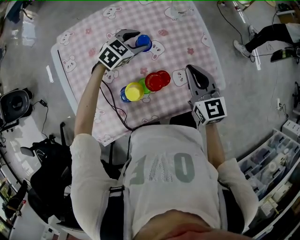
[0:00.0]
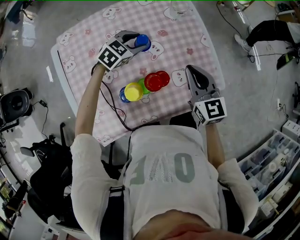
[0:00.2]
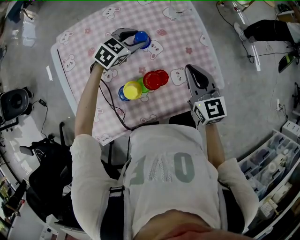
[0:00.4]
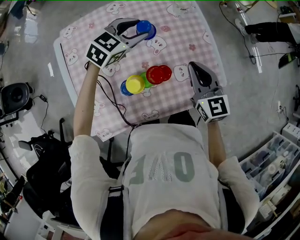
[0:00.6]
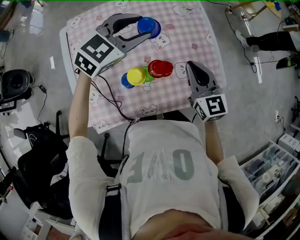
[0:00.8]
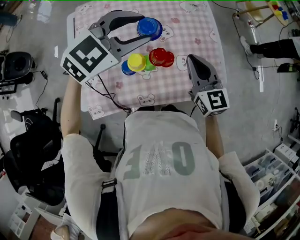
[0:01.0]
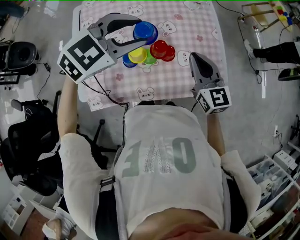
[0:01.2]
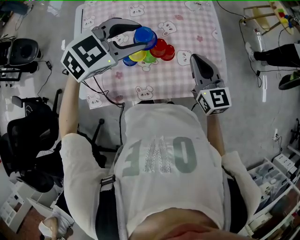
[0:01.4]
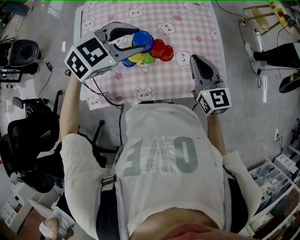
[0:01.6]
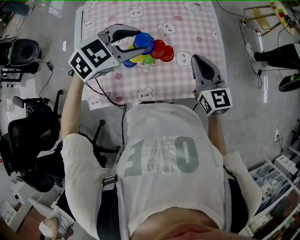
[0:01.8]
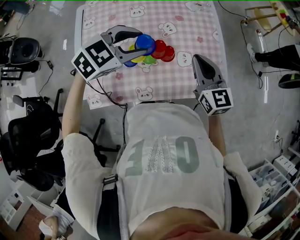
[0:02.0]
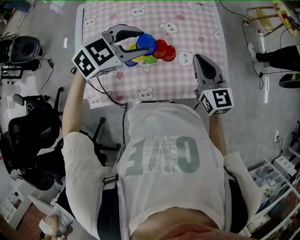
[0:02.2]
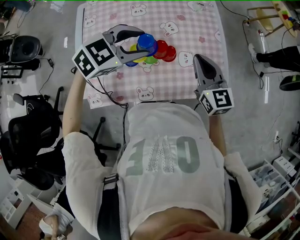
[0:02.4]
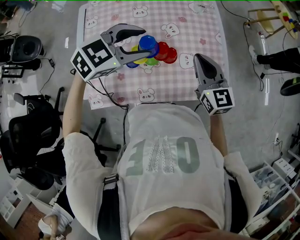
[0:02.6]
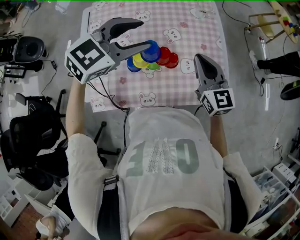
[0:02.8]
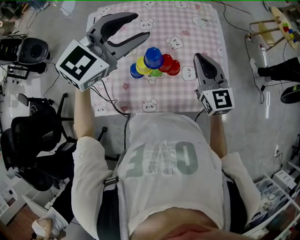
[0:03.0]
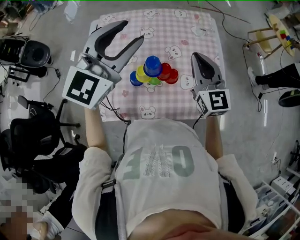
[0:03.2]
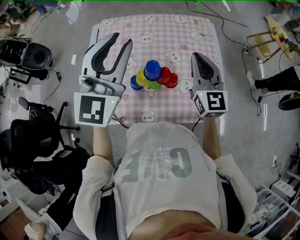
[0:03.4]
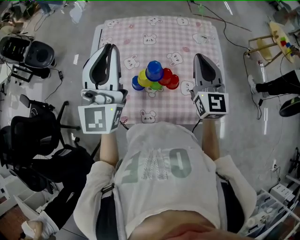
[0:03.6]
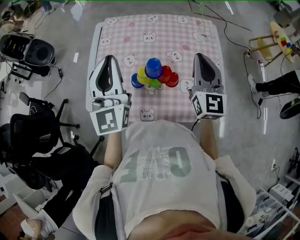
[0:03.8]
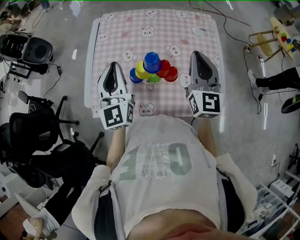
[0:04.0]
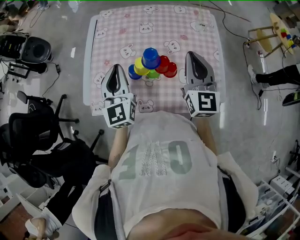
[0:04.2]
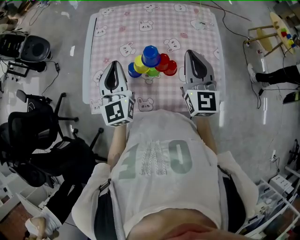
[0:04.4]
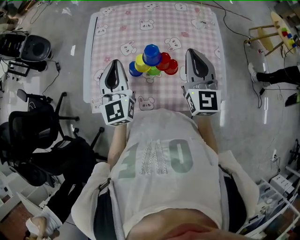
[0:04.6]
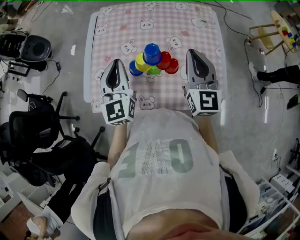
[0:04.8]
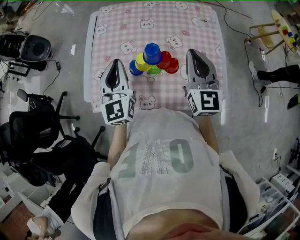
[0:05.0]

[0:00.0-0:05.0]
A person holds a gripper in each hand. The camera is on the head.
0:00.0 to 0:01.6: The left gripper shifts about 25 cm backward and upward. The right gripper moves backward, some 10 cm.
0:01.6 to 0:03.4: The right gripper heads upward, forward and to the left, covering about 10 cm, while the left gripper shifts roughly 15 cm upward, and angles its fingers upward, by some 50 degrees.
0:03.4 to 0:05.0: The left gripper heads downward, covering some 15 cm, turns by some 30 degrees, and closes its fingers.

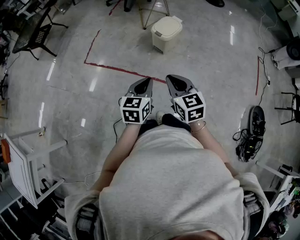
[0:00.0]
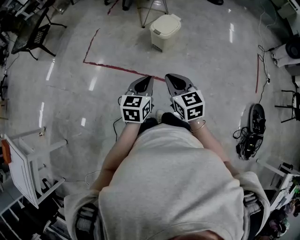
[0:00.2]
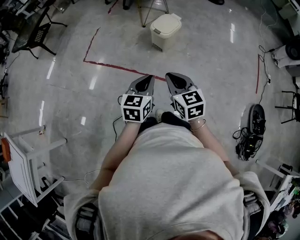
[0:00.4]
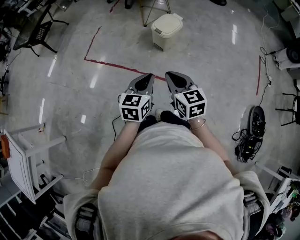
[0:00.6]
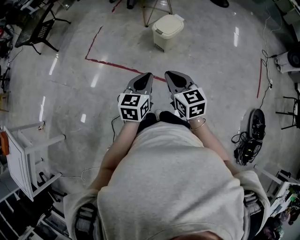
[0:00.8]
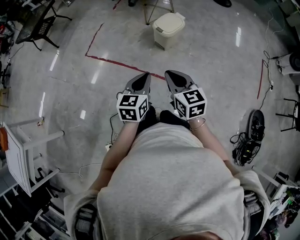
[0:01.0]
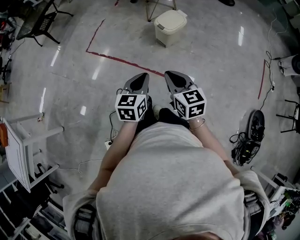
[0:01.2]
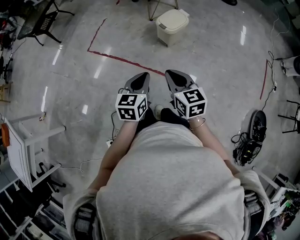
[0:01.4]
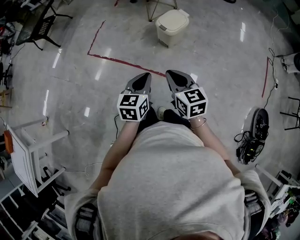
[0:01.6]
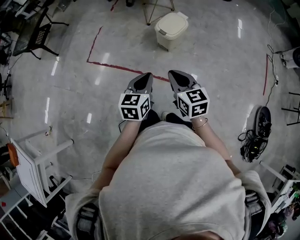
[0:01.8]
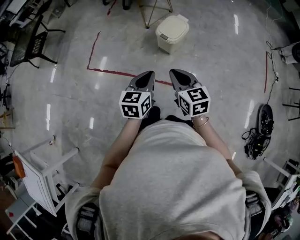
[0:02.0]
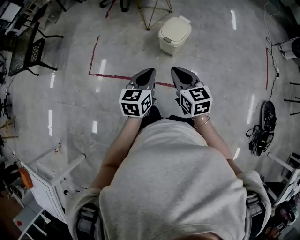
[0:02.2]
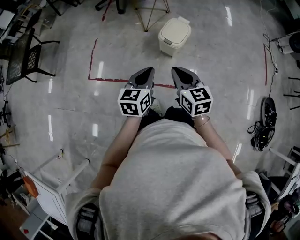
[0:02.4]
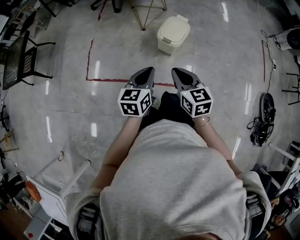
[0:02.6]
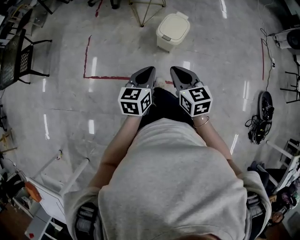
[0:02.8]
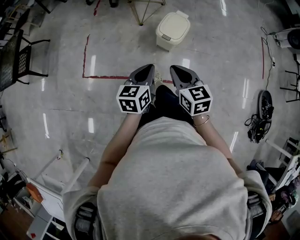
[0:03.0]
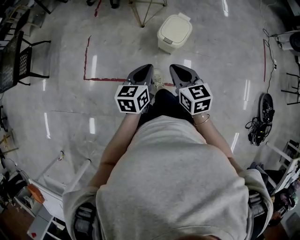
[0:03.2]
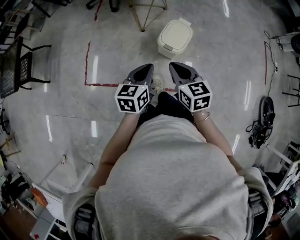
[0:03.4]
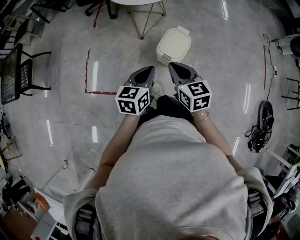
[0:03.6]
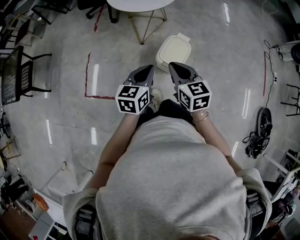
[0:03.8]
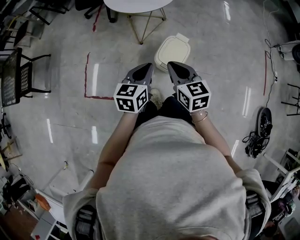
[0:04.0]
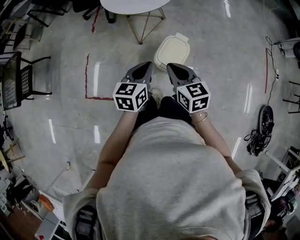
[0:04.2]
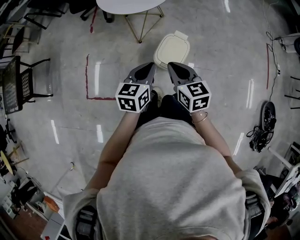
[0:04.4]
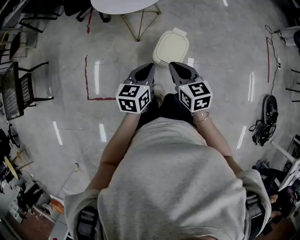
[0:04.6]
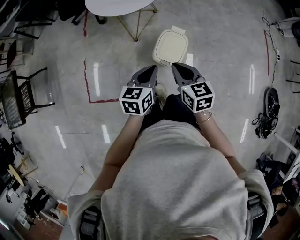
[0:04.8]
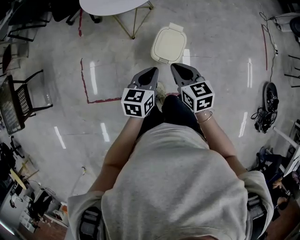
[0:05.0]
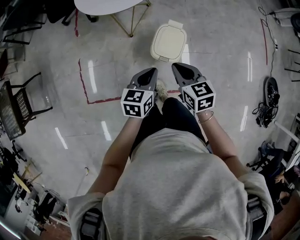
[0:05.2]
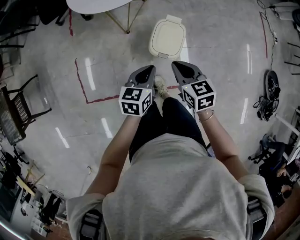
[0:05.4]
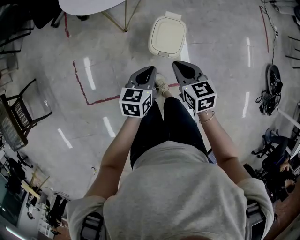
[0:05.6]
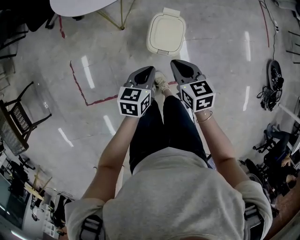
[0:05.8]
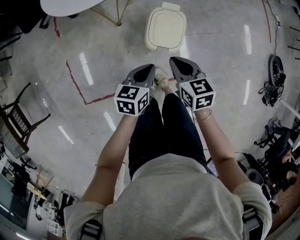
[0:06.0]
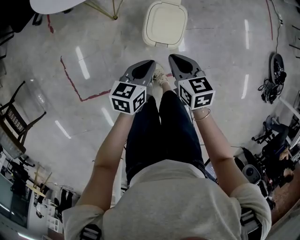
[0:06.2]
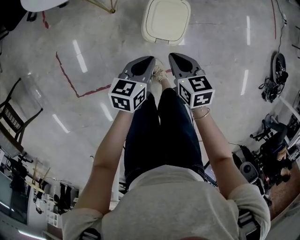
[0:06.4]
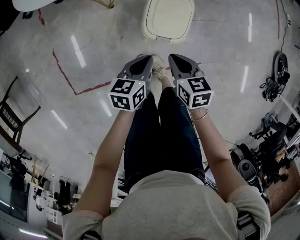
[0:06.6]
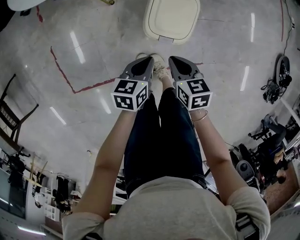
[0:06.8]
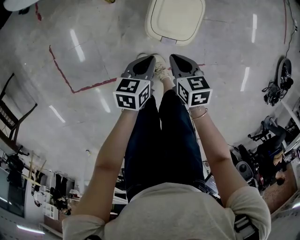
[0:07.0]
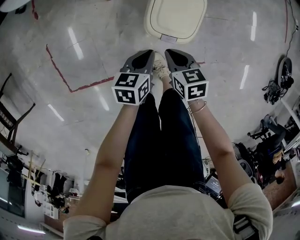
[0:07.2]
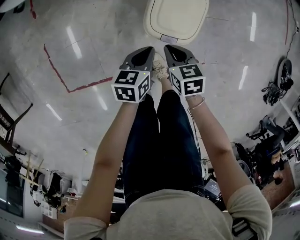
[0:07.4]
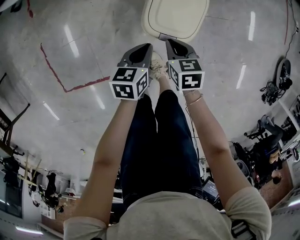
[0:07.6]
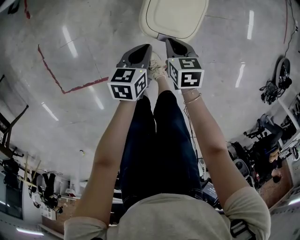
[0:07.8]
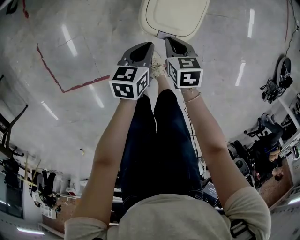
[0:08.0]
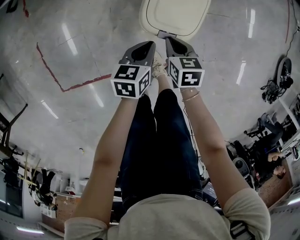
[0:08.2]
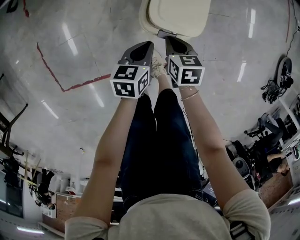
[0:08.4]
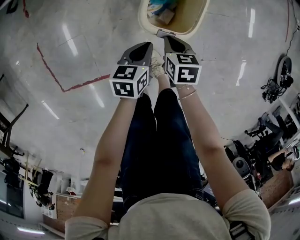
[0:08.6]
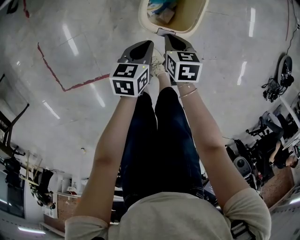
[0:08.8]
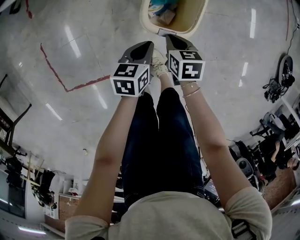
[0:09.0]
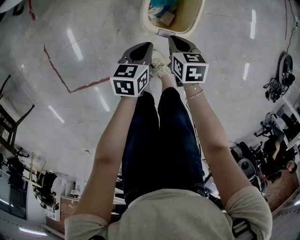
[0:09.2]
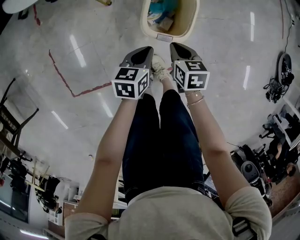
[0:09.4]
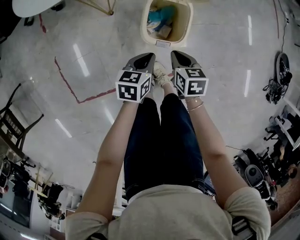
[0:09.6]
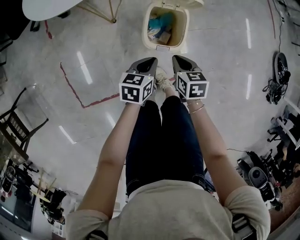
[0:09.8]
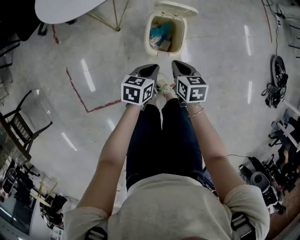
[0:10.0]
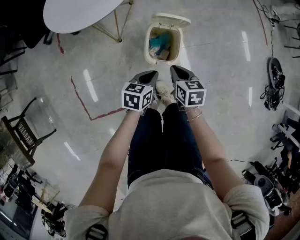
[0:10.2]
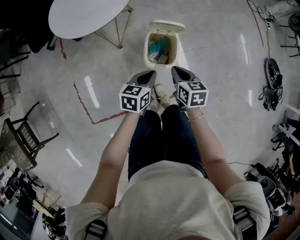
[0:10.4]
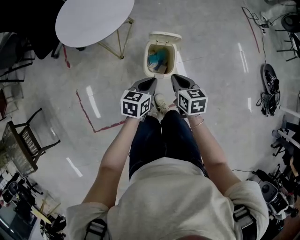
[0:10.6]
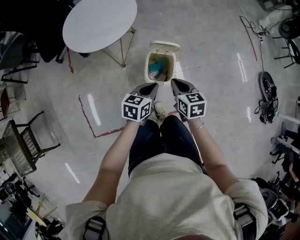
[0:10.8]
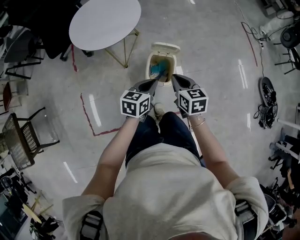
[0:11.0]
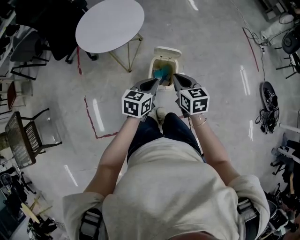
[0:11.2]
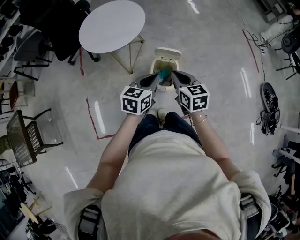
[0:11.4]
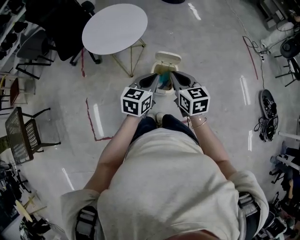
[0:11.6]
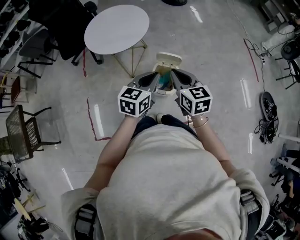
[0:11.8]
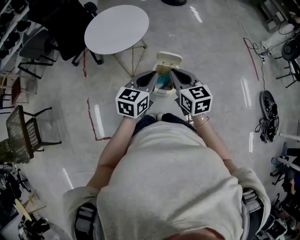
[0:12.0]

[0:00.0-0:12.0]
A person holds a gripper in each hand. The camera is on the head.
0:00.0 to 0:01.6: The right gripper changes place by about 5 cm.
0:01.6 to 0:03.0: The two grippers go some 25 cm forward and to the left.
0:03.0 to 0:04.4: The two grippers go approximately 25 cm forward.
0:04.4 to 0:06.0: Both grippers travel together downward, roughly 15 cm. The right gripper rotates approximately 20 degrees; the left gripper rotates some 30 degrees.
0:06.0 to 0:07.6: The two grippers go approximately 25 cm downward.
0:07.6 to 0:09.0: The grippers make only small movements.
0:09.0 to 0:10.4: Both grippers travel together upward, about 25 cm.
0:10.4 to 0:12.0: Both grippers move upward, some 25 cm. The right gripper turns by some 30 degrees, while the left gripper turns by roughly 30 degrees.

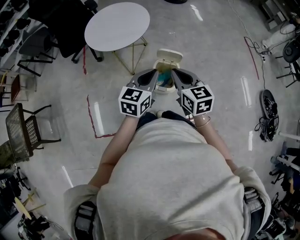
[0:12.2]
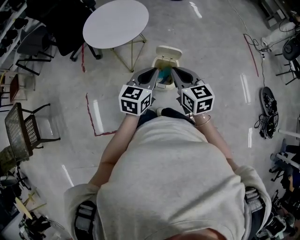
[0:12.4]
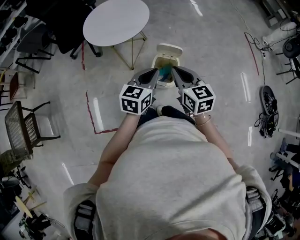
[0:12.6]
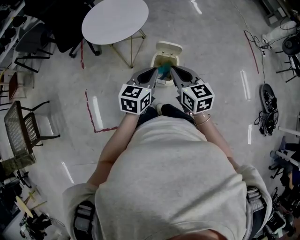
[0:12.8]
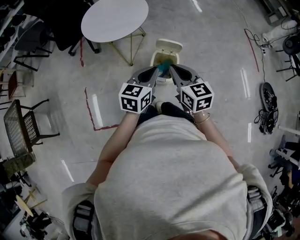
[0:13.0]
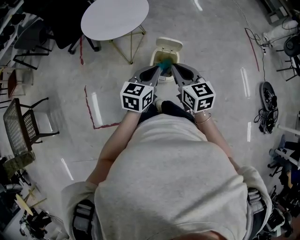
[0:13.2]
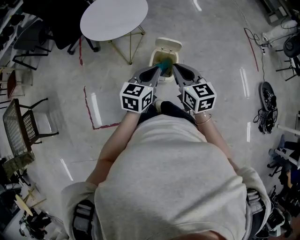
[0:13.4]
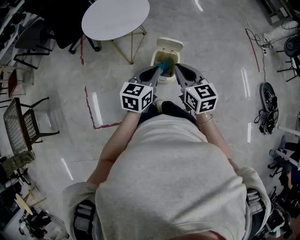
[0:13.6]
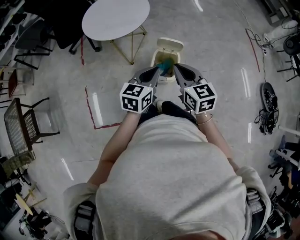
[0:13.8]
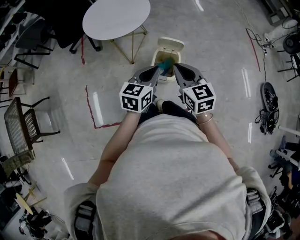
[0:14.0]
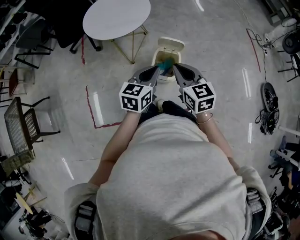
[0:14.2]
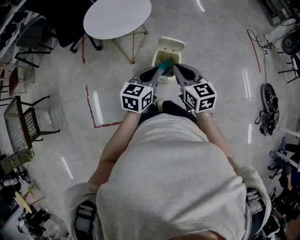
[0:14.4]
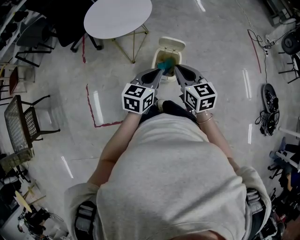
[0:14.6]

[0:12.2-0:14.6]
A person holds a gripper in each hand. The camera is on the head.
0:12.2 to 0:14.6: There are only small adjustments of the grippers.

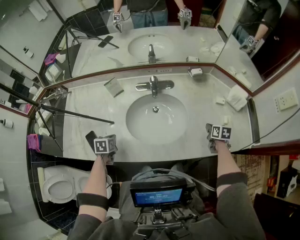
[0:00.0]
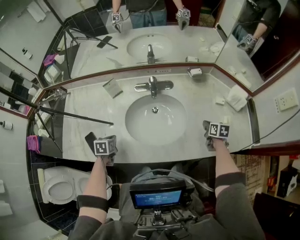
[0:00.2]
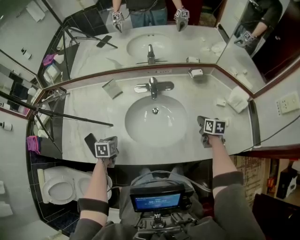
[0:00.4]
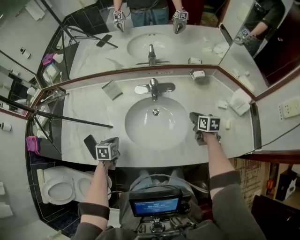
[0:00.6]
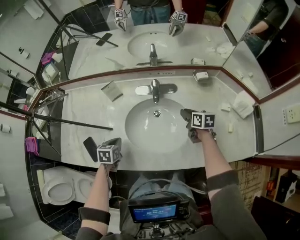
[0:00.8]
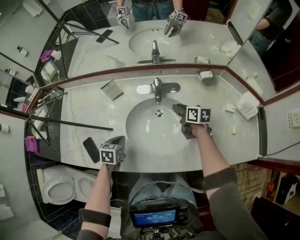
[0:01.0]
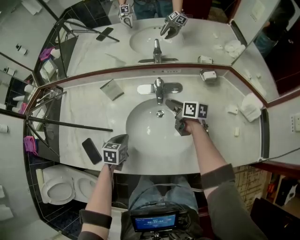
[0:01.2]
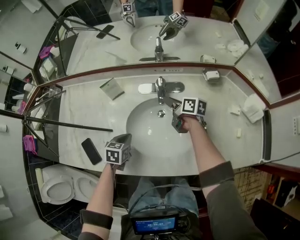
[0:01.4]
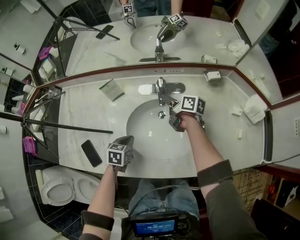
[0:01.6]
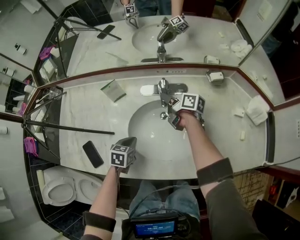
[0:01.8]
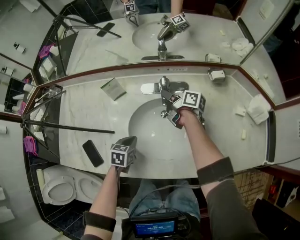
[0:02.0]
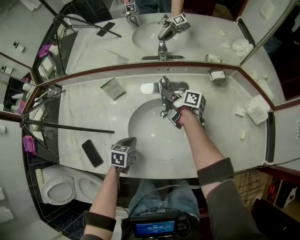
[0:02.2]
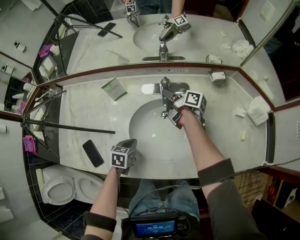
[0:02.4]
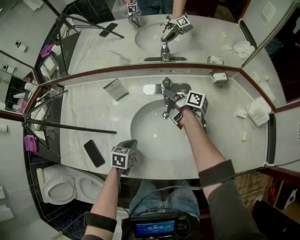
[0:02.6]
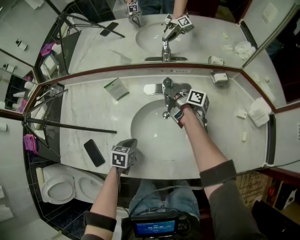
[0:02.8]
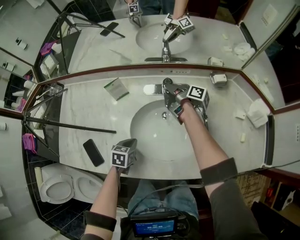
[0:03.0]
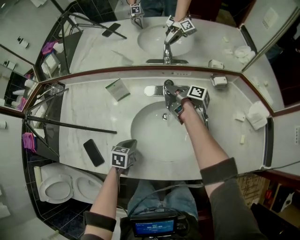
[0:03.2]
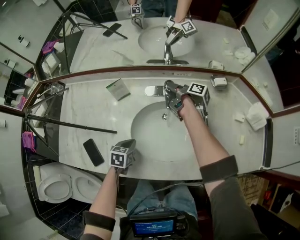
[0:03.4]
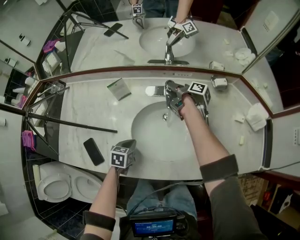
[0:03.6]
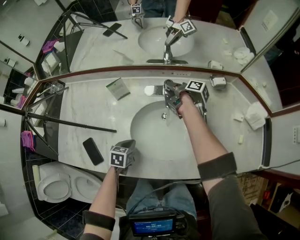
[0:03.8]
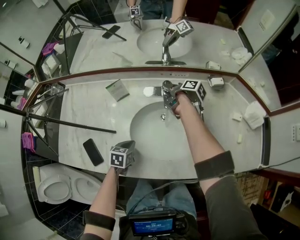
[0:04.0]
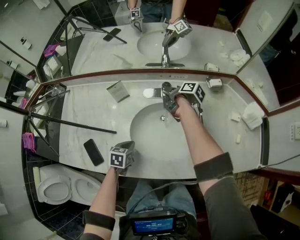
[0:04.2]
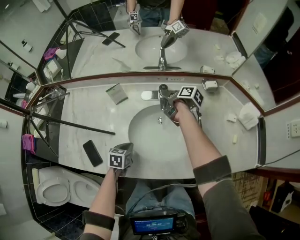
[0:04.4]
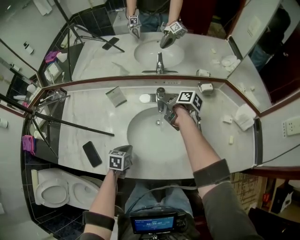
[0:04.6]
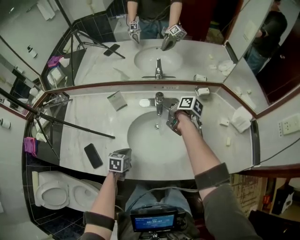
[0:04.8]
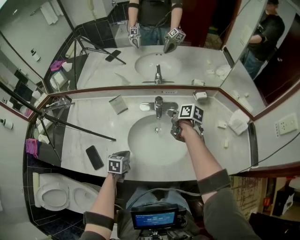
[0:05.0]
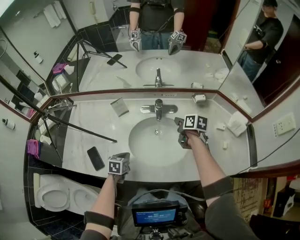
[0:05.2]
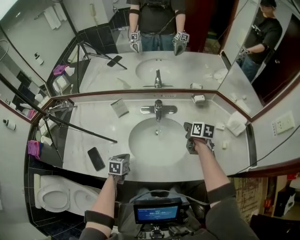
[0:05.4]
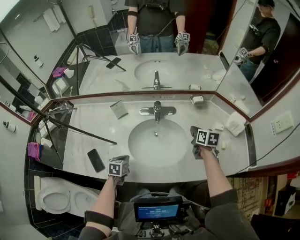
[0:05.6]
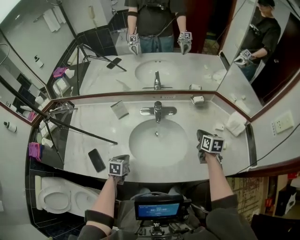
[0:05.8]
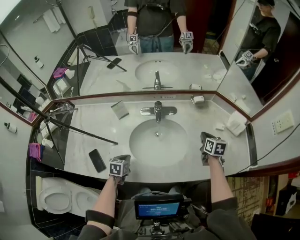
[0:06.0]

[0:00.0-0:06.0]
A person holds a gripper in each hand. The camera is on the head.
0:00.0 to 0:01.6: The left gripper moves to the right and forward, some 10 cm. The right gripper moves to the left and forward, about 40 cm, tips its fingers upward by some 30 degrees, and opens.
0:01.6 to 0:03.0: The right gripper turns by approximately 30 degrees.
0:03.0 to 0:04.4: The right gripper turns by roughly 20 degrees.
0:04.4 to 0:06.0: The right gripper is displaced to the right and backward by about 30 cm, and rotates around the line of its fingers by approximately 40 degrees, counterclockwise from behind. Meanwhile the left gripper shifts by roughly 5 cm.
